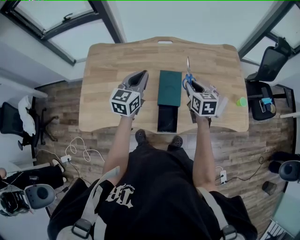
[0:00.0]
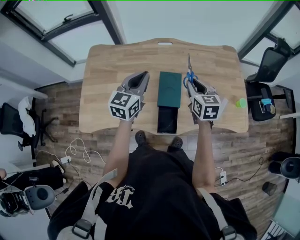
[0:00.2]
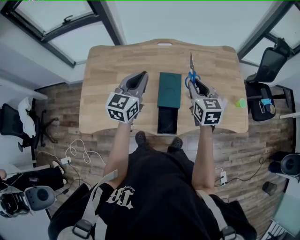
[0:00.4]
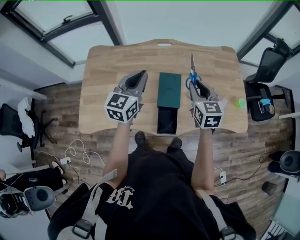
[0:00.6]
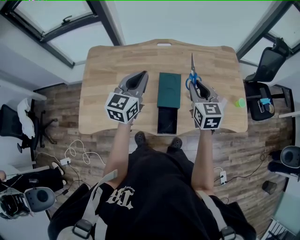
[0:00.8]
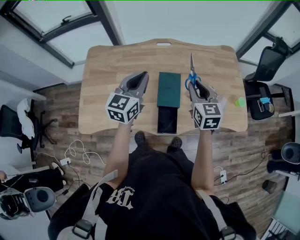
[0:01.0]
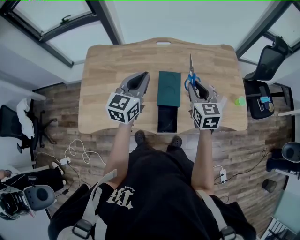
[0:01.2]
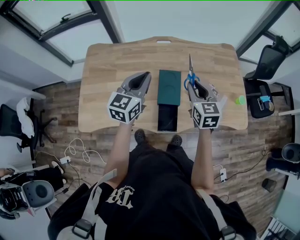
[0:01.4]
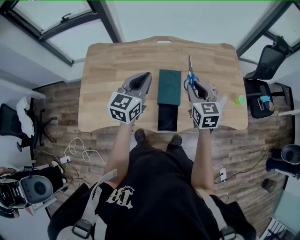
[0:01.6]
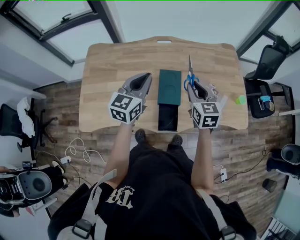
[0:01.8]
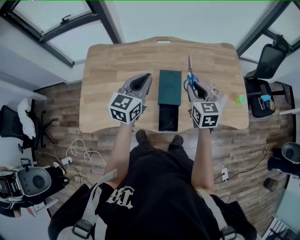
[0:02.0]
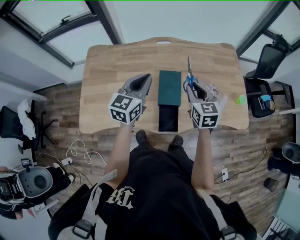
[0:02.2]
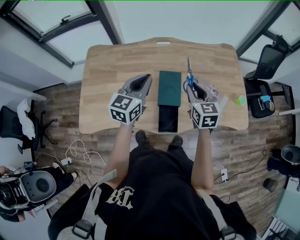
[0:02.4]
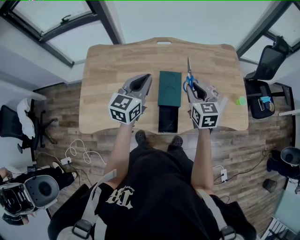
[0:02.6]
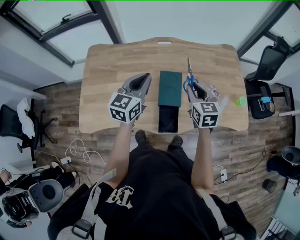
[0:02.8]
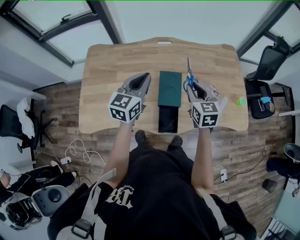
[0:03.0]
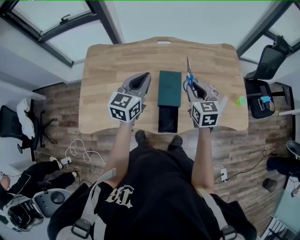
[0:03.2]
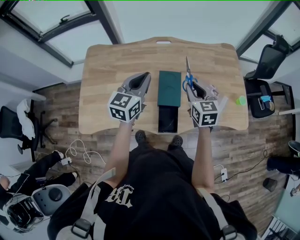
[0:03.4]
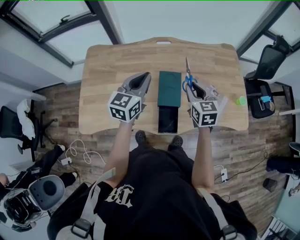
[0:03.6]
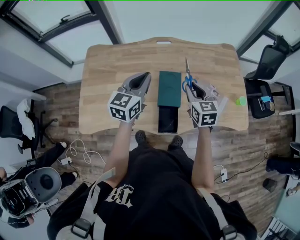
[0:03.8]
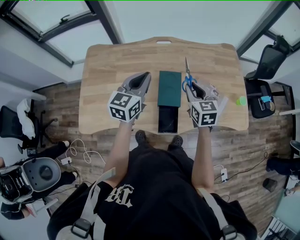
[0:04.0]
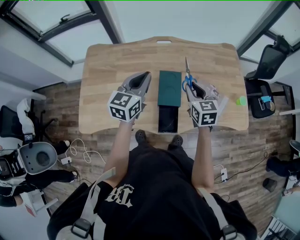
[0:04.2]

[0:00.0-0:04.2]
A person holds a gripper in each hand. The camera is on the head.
0:00.0 to 0:01.4: The right gripper moves upward, some 5 cm. Meanwhile the left gripper shifts by roughly 5 cm.
0:01.4 to 0:02.8: The grippers stay close to where they were, moving slightly.
0:02.8 to 0:04.2: Both grippers stay put.

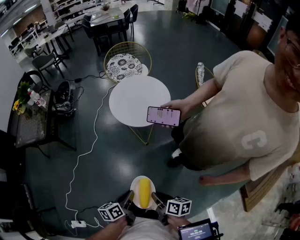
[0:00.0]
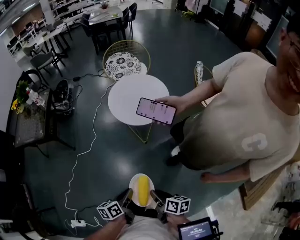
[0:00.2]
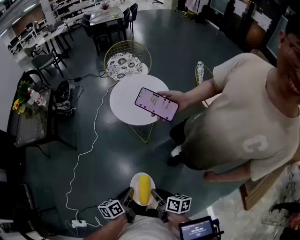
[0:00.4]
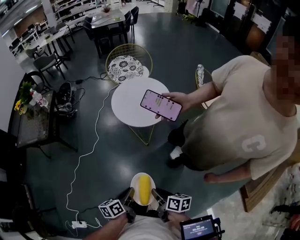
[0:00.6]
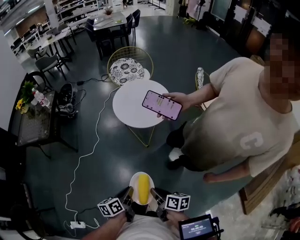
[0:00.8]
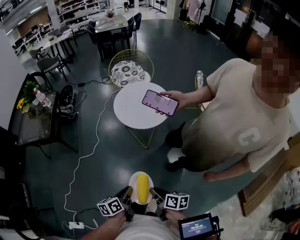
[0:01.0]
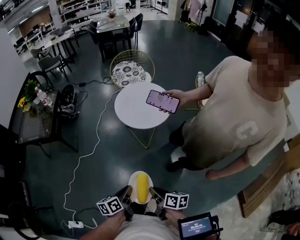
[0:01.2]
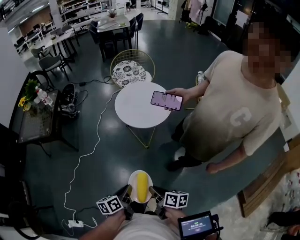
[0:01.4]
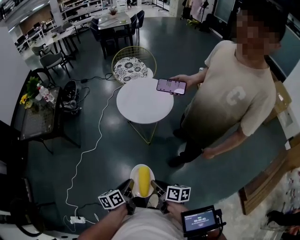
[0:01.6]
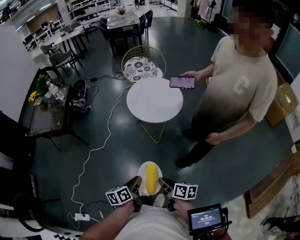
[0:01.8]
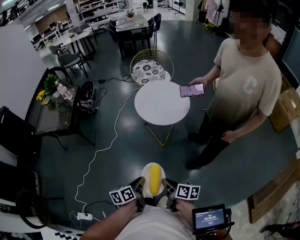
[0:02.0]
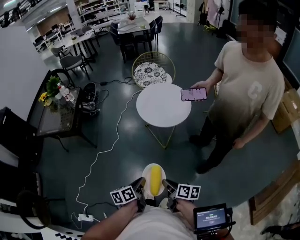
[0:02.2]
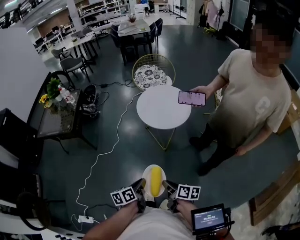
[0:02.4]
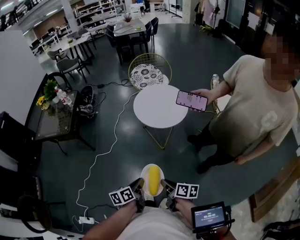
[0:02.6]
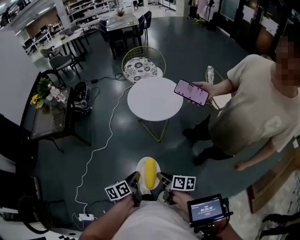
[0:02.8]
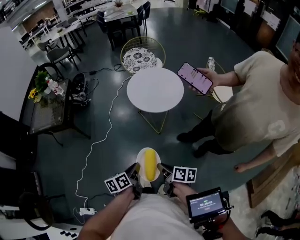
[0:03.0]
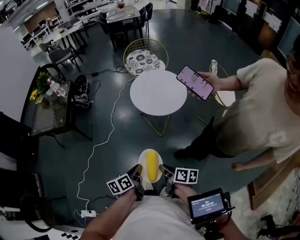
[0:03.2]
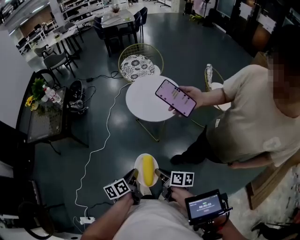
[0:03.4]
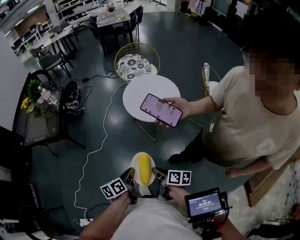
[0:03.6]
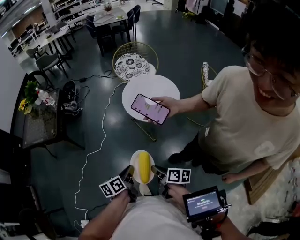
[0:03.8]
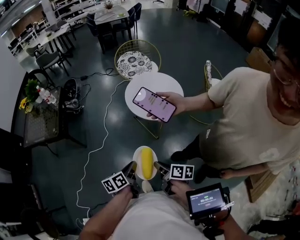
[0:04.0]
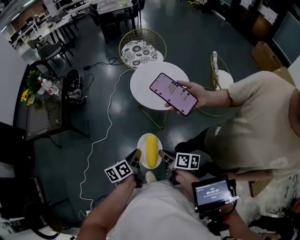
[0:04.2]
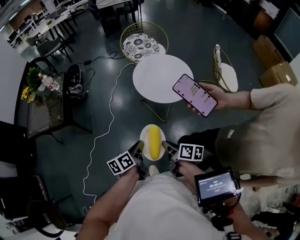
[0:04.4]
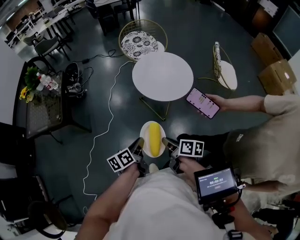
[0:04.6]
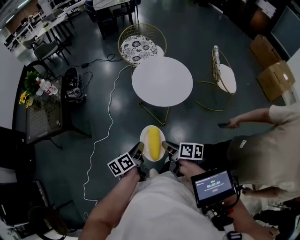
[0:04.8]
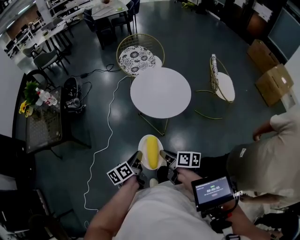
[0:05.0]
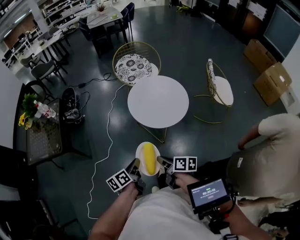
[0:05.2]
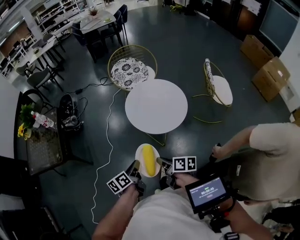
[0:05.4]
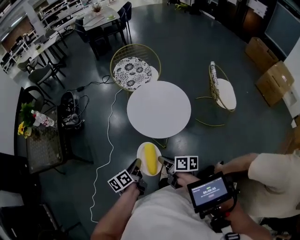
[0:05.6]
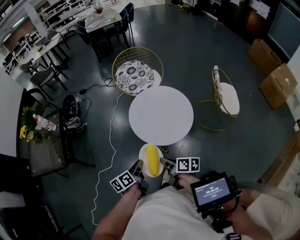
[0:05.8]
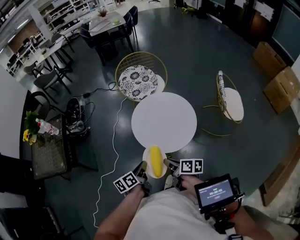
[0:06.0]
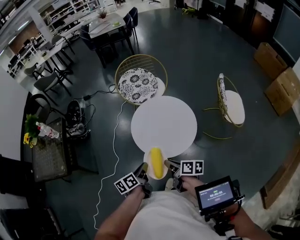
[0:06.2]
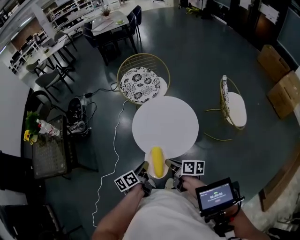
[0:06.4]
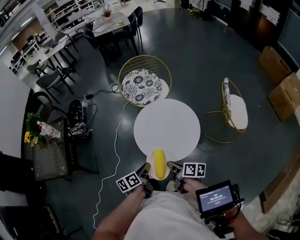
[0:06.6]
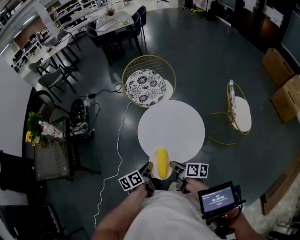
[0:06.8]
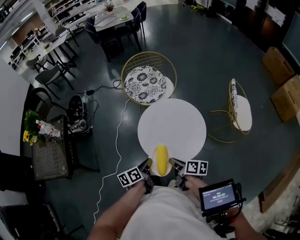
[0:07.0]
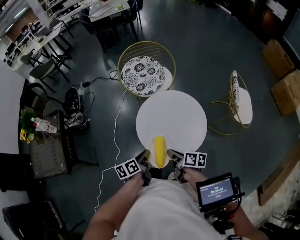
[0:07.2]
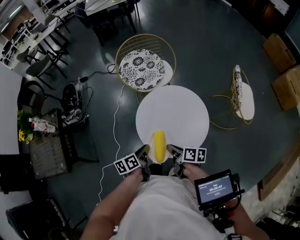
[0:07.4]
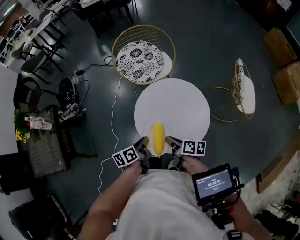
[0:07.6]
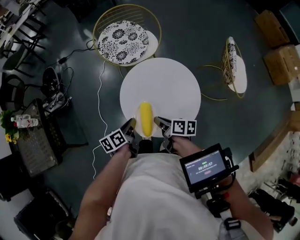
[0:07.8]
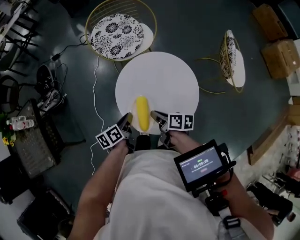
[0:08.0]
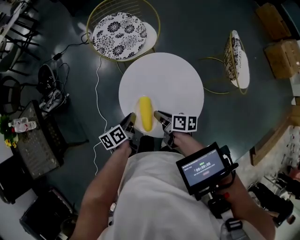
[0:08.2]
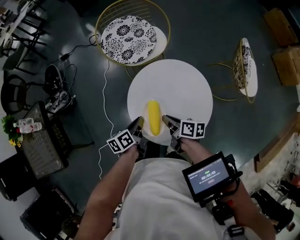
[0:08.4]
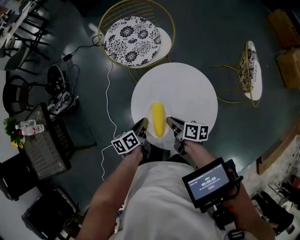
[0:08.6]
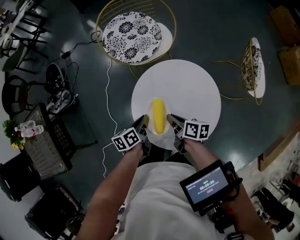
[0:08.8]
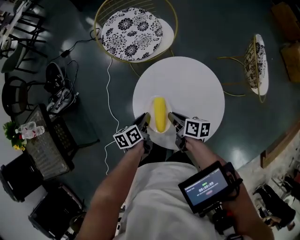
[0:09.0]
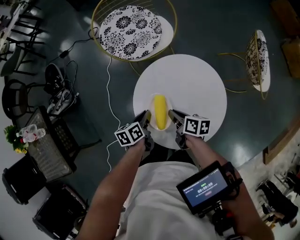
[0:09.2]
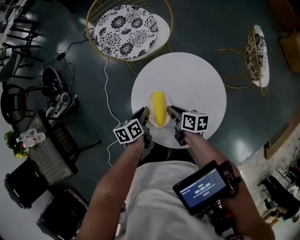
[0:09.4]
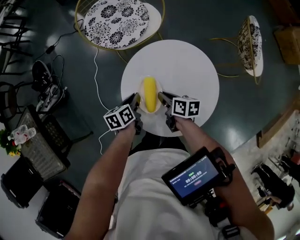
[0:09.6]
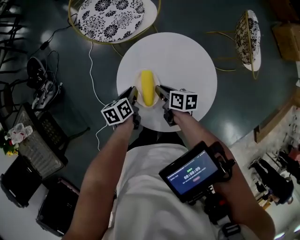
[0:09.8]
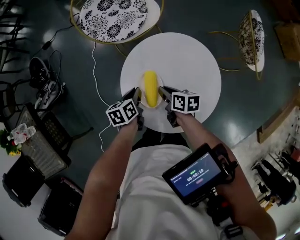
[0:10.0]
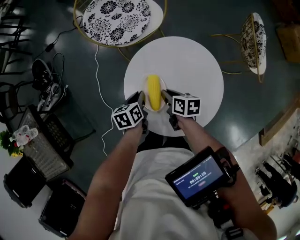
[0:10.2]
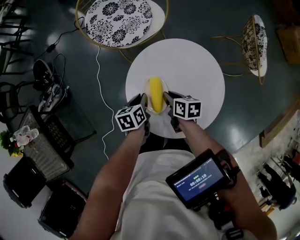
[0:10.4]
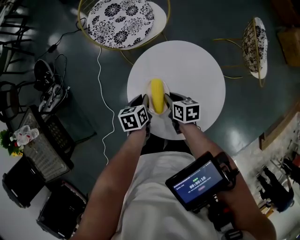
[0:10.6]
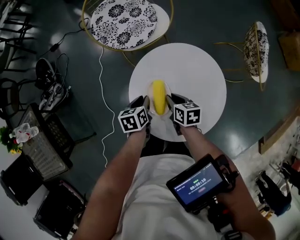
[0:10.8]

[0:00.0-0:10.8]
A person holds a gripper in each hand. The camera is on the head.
0:00.0 to 0:01.6: The grippers stay close to where they were, moving slightly.
0:01.6 to 0:03.0: There are only small adjustments of the grippers.
0:03.0 to 0:04.6: The two grippers go approximately 15 cm forward and to the left.
0:04.6 to 0:06.2: Both grippers travel together forward, some 25 cm.
0:06.2 to 0:07.8: The right gripper is displaced forward and downward by approximately 20 cm; the left gripper heads forward, covering roughly 20 cm.
0:07.8 to 0:09.2: The grippers both shift downward and forward by approximately 15 cm.
0:09.2 to 0:10.8: The right gripper changes its angle by approximately 20 degrees.

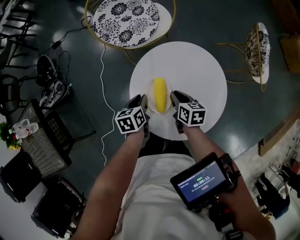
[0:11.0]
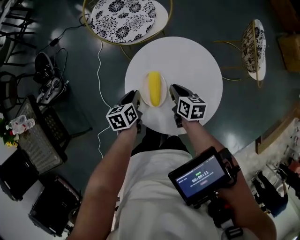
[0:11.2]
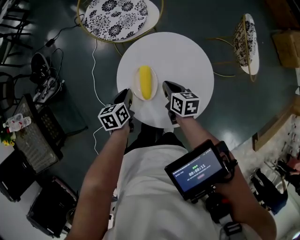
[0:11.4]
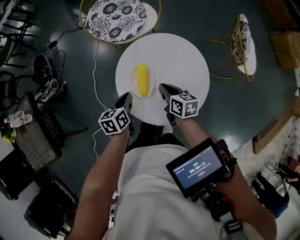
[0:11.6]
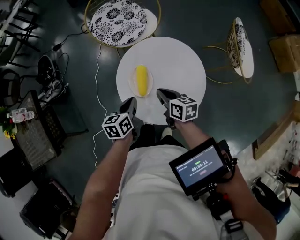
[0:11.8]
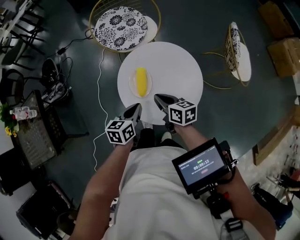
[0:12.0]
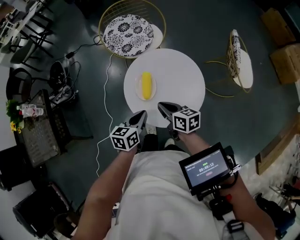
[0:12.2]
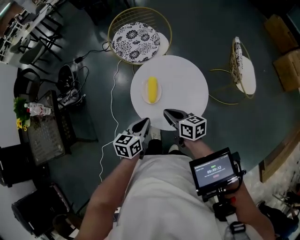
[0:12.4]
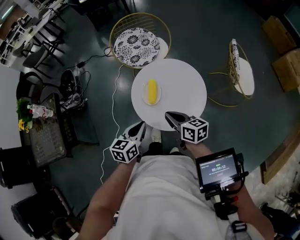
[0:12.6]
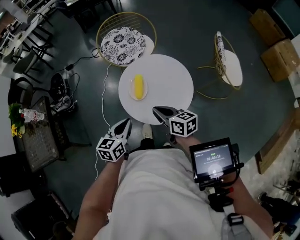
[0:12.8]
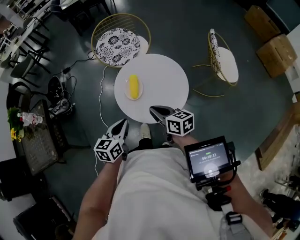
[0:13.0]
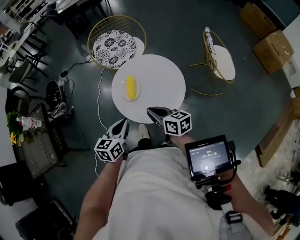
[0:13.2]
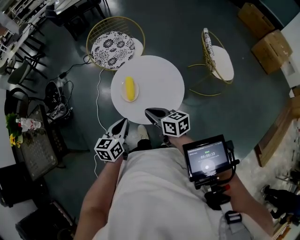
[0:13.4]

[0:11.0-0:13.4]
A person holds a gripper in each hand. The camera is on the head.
0:11.0 to 0:12.2: The left gripper travels backward, upward and to the right by some 25 cm, and rotates roughly 20 degrees; the right gripper is displaced upward and backward by approximately 20 cm, and swivels about 30 degrees.
0:12.2 to 0:13.4: The left gripper shifts approximately 10 cm upward and backward; the right gripper moves backward and upward, about 10 cm.

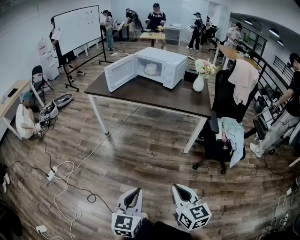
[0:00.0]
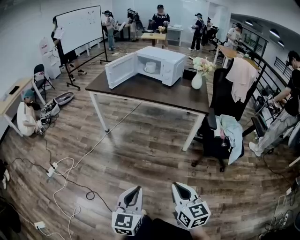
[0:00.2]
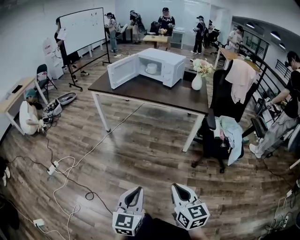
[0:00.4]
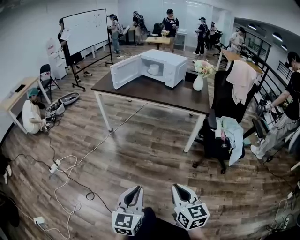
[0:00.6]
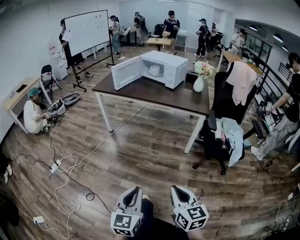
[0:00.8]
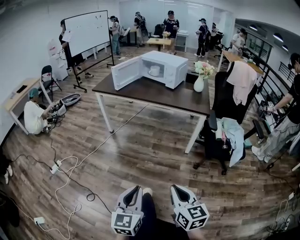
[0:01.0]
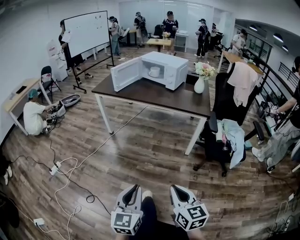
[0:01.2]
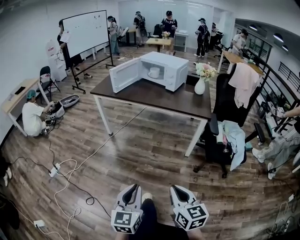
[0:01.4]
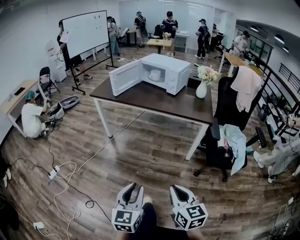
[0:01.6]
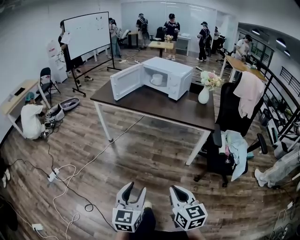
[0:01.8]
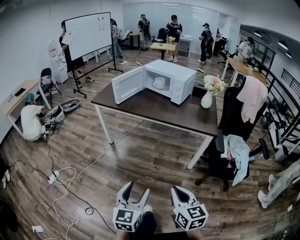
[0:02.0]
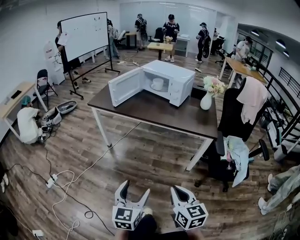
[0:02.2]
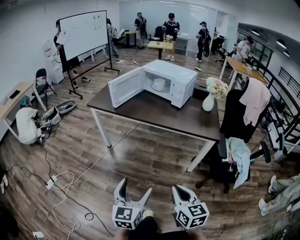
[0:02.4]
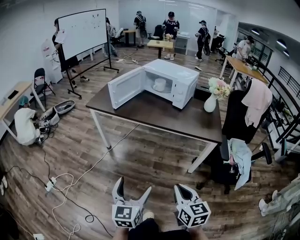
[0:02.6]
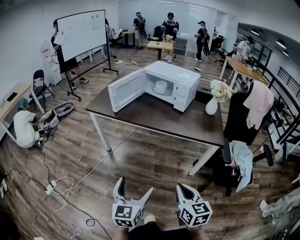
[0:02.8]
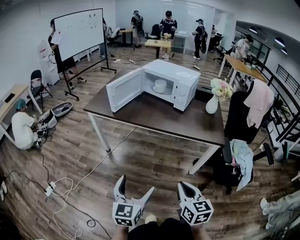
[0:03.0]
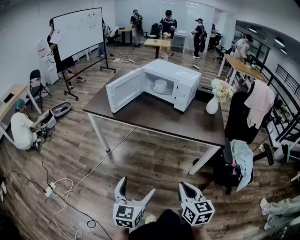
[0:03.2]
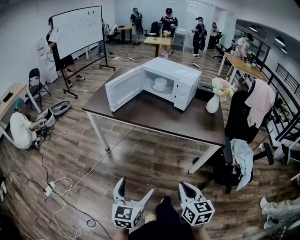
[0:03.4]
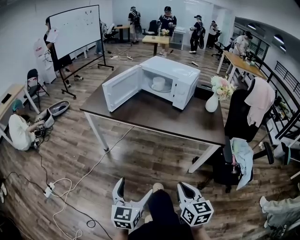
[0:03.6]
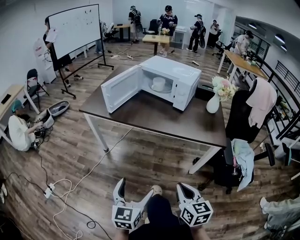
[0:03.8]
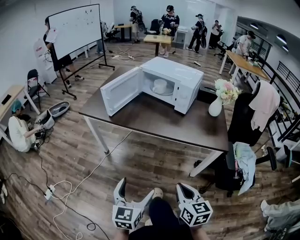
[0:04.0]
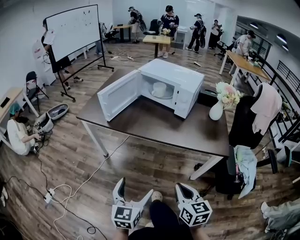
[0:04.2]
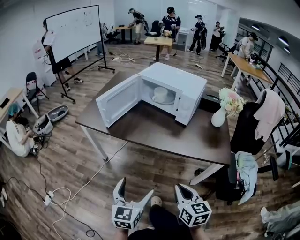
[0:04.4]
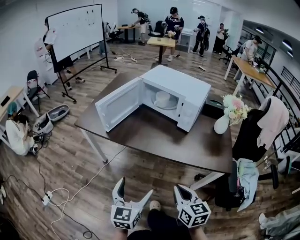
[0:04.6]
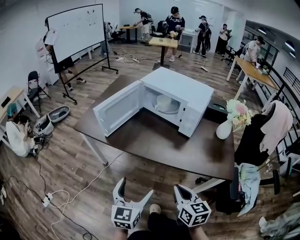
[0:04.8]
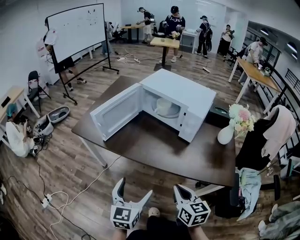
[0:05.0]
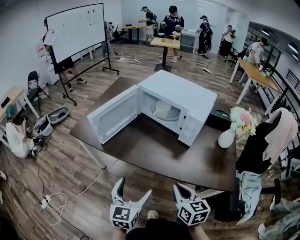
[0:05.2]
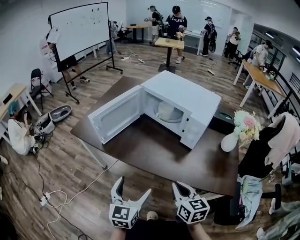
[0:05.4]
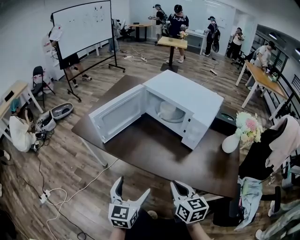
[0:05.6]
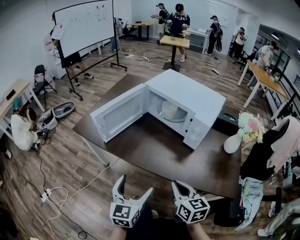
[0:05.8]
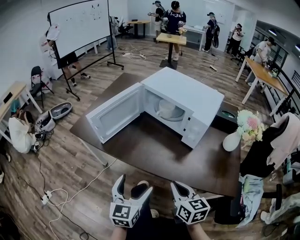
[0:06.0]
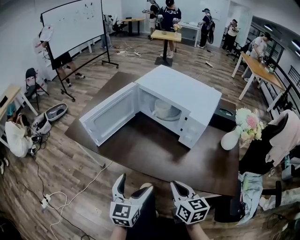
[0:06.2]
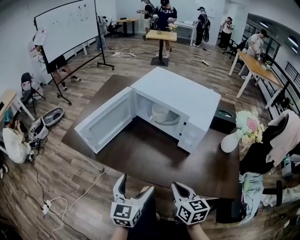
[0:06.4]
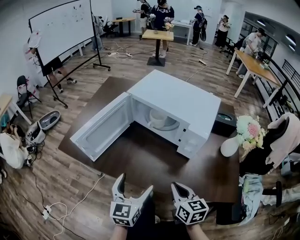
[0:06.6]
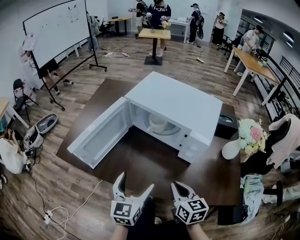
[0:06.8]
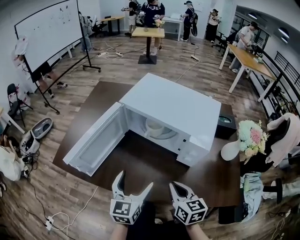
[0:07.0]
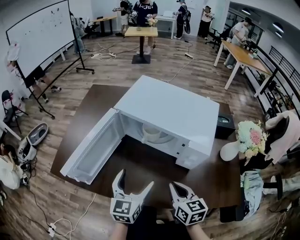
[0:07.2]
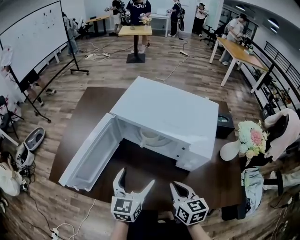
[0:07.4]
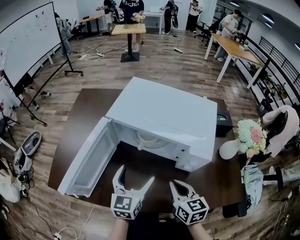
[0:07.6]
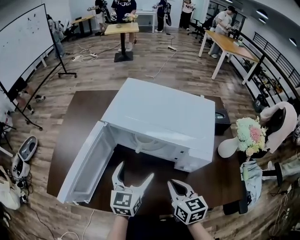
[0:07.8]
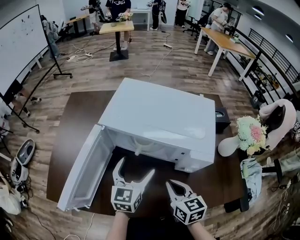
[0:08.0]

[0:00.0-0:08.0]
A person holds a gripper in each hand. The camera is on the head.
0:00.0 to 0:01.6: The right gripper goes backward and returns, approximately 10 cm each way. Meanwhile the left gripper reaches some 10 cm backward, then returns.
0:01.6 to 0:03.2: Both grippers move forward, about 25 cm. The left gripper opens up.
0:03.2 to 0:04.8: The two grippers go approximately 25 cm forward.
0:04.8 to 0:06.4: Both grippers travel together forward, some 15 cm.
0:06.4 to 0:08.0: The two grippers go approximately 25 cm forward.
